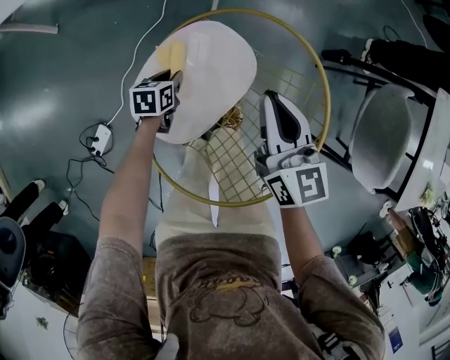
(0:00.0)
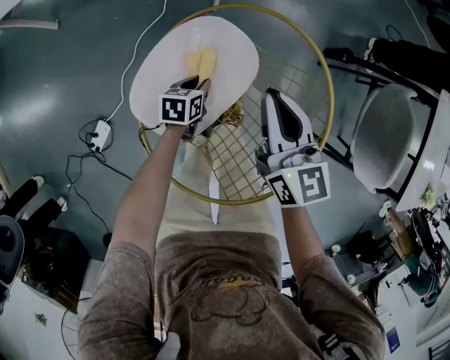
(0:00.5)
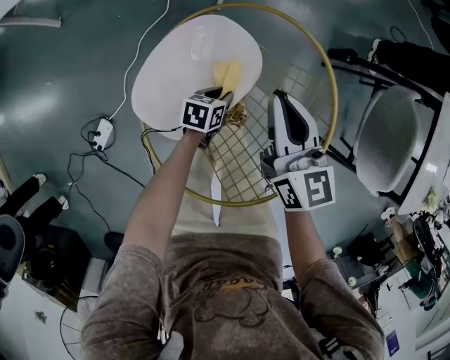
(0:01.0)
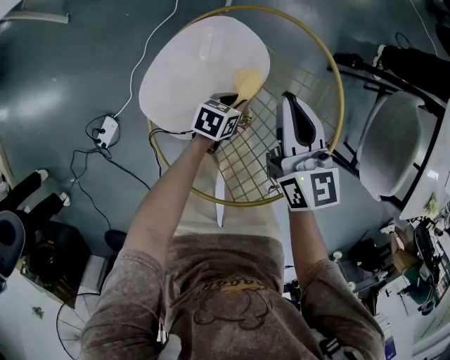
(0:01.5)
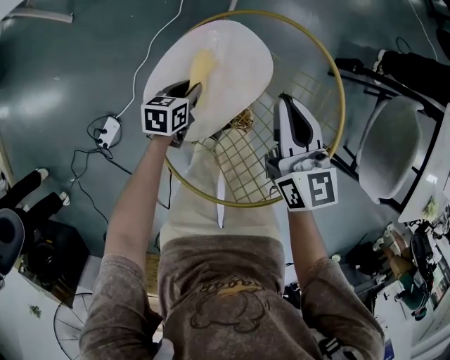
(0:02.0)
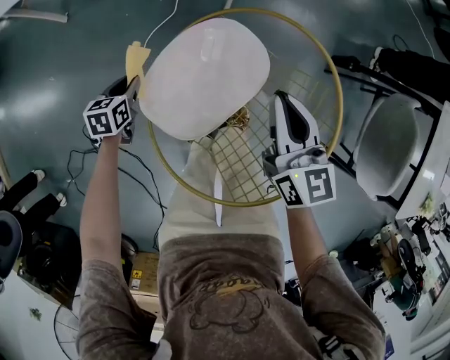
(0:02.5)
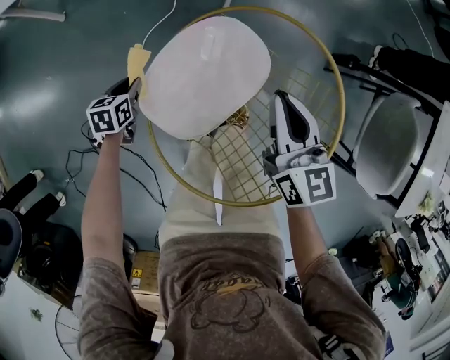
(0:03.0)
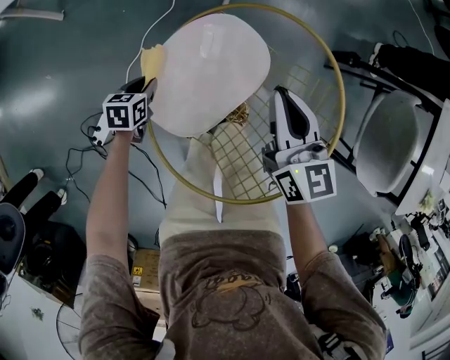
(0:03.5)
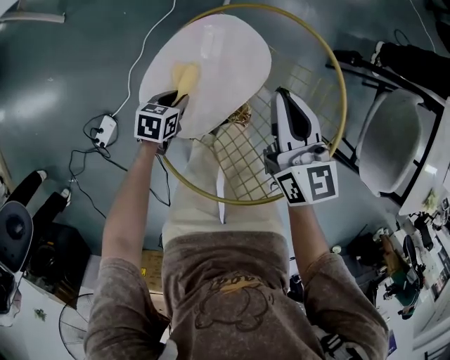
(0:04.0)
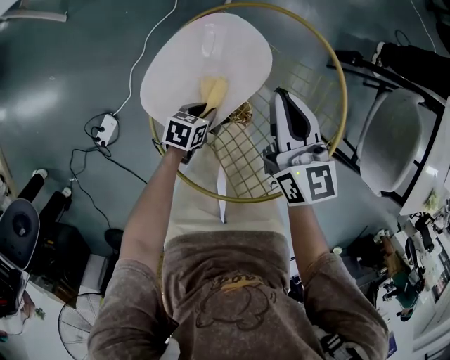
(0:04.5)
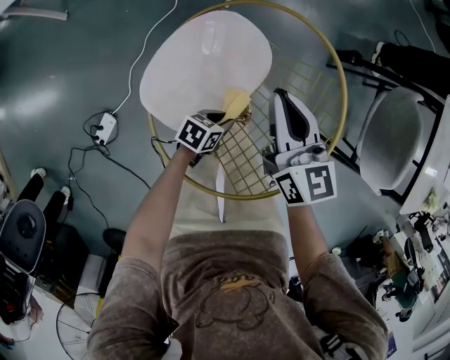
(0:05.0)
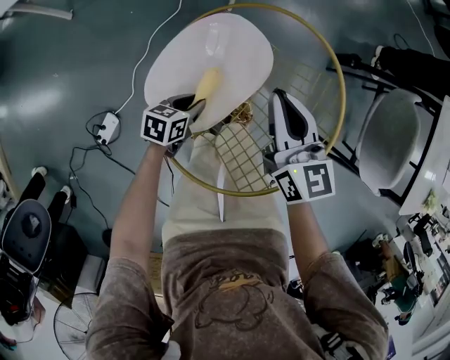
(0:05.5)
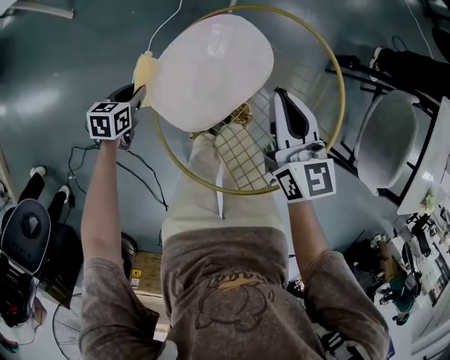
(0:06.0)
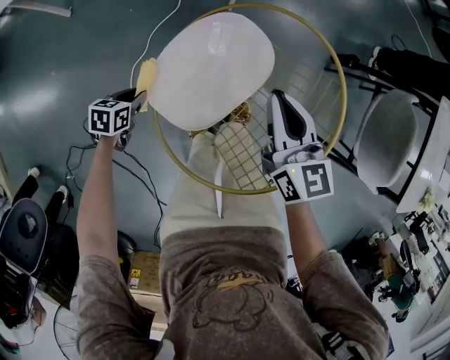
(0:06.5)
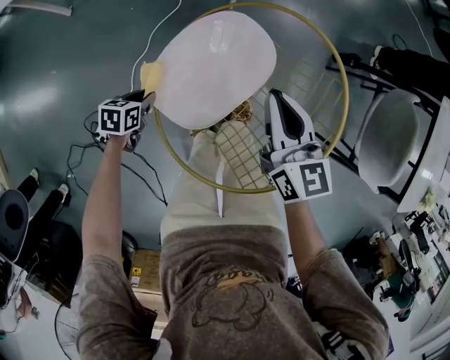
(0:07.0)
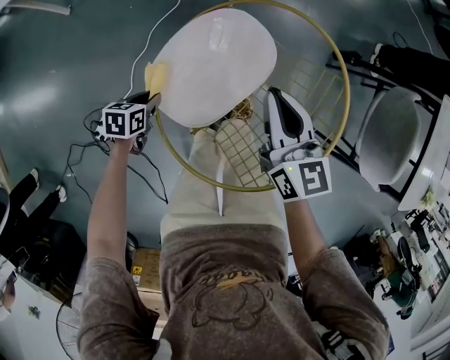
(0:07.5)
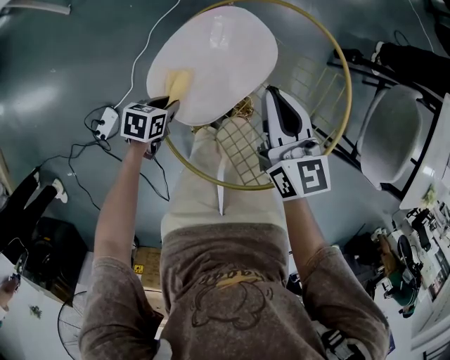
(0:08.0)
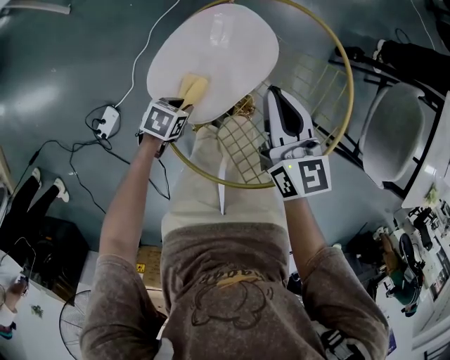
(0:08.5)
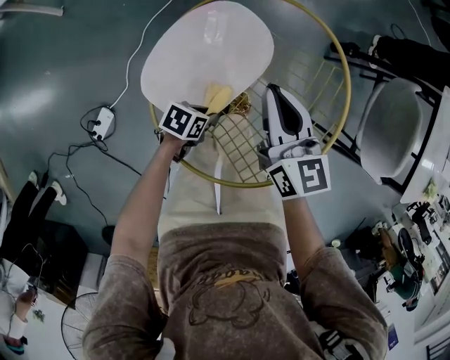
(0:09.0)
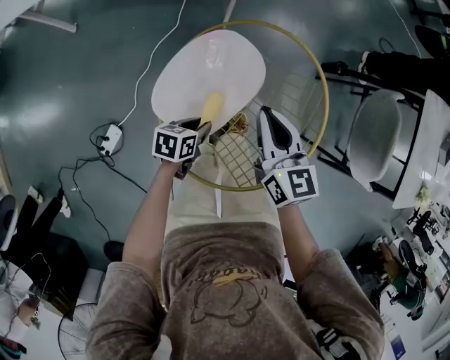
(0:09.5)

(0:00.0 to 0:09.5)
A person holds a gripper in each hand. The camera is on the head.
0:00.0 - 0:02.0: The left gripper moves roughly 20 cm to the right and comes back.
0:02.0 - 0:04.0: The left gripper is displaced backward by roughly 5 cm, and travels to the left and back again, roughly 15 cm each way.
0:04.0 - 0:05.5: The left gripper travels to the right and back again, about 15 cm each way.
0:05.5 - 0:07.5: The left gripper shifts roughly 15 cm to the left.
0:07.5 - 0:09.5: The left gripper goes some 15 cm to the right and upward.

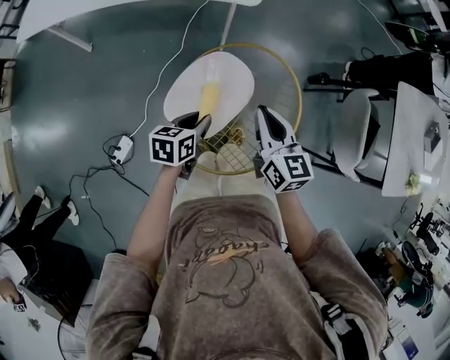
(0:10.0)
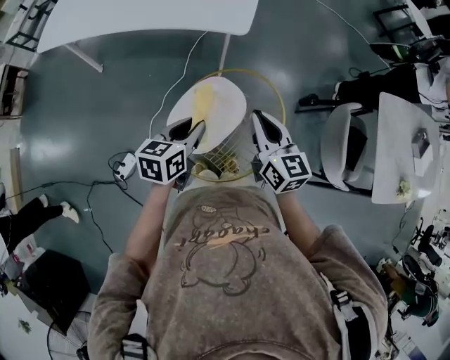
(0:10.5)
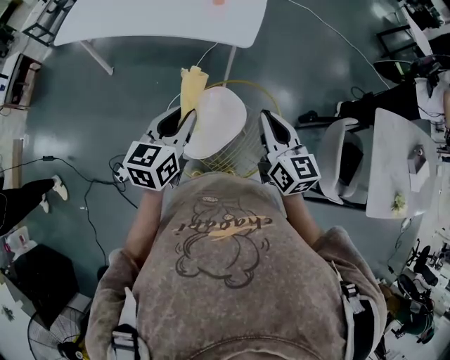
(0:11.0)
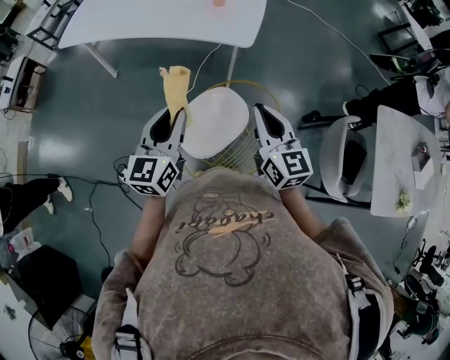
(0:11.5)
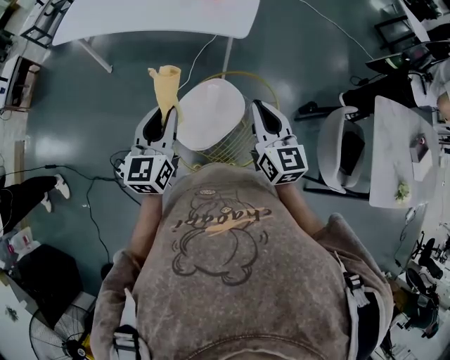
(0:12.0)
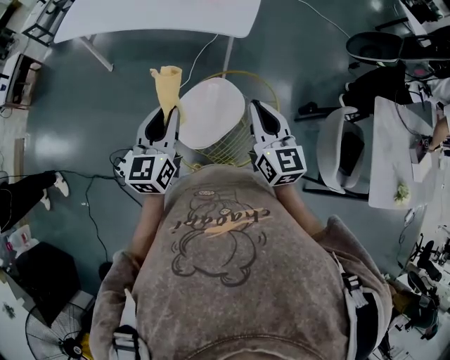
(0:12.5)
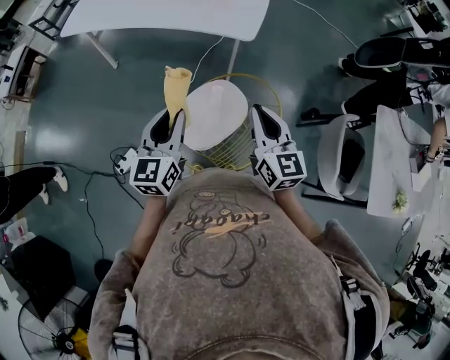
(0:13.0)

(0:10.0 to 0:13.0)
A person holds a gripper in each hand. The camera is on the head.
0:10.0 - 0:11.5: The left gripper heads upward, covering some 30 cm, and tilts its fingers about 30 degrees upward; the right gripper heads upward, covering roughly 15 cm.
0:11.5 - 0:13.0: The grippers make only small movements.

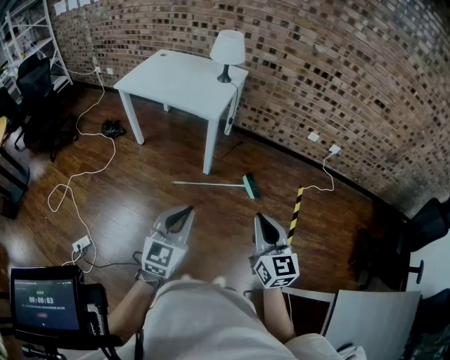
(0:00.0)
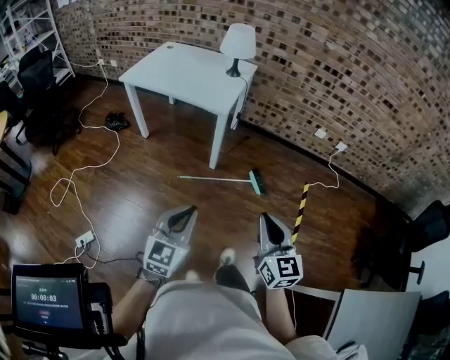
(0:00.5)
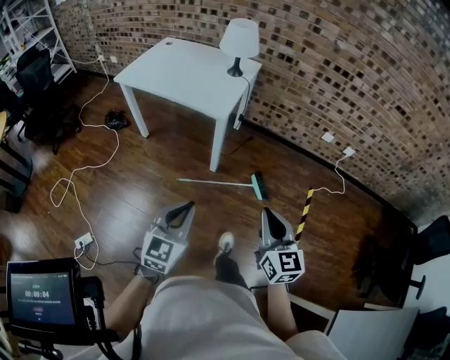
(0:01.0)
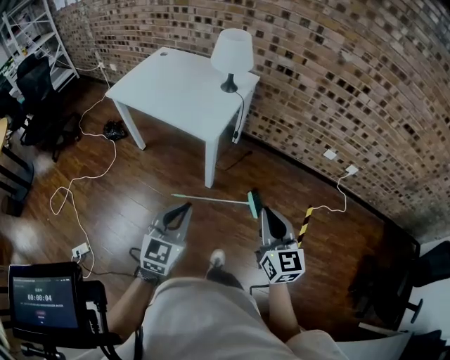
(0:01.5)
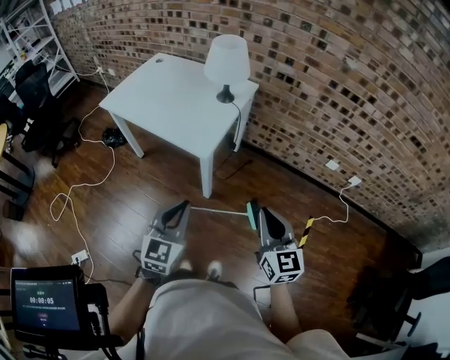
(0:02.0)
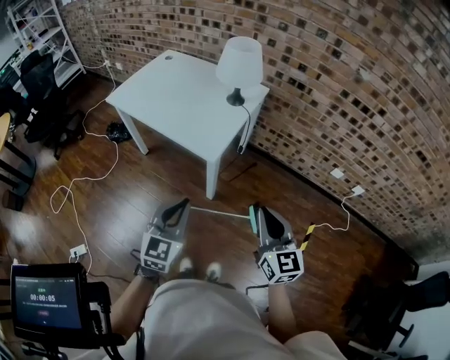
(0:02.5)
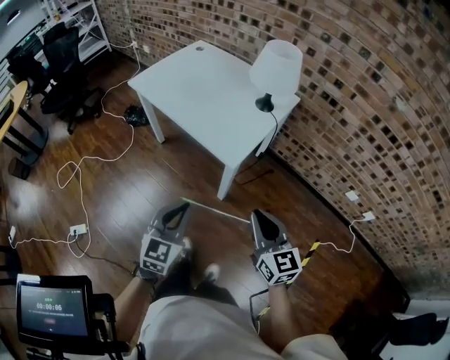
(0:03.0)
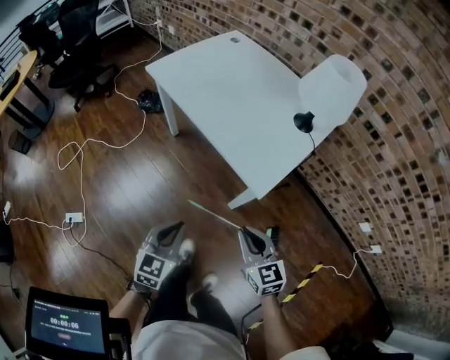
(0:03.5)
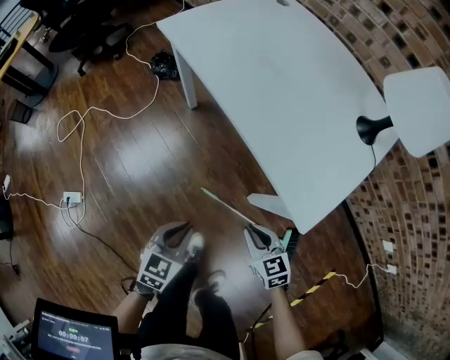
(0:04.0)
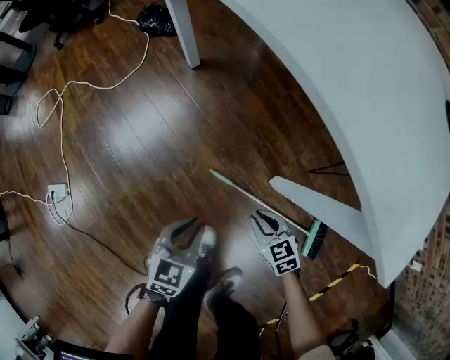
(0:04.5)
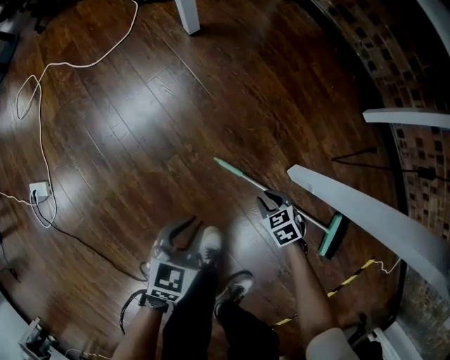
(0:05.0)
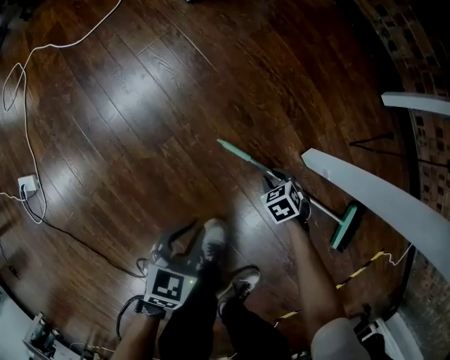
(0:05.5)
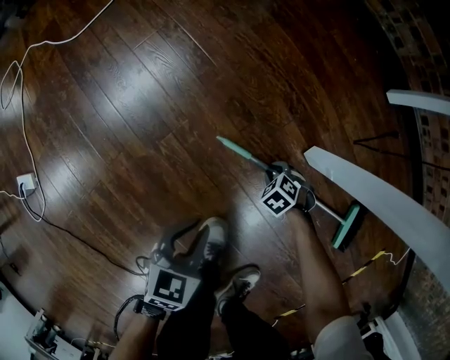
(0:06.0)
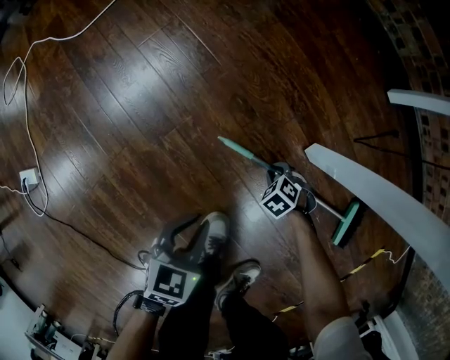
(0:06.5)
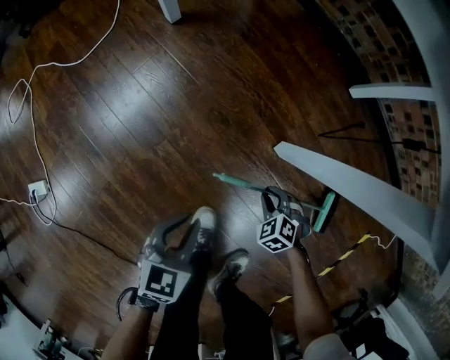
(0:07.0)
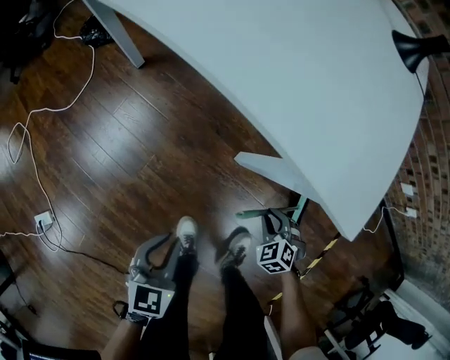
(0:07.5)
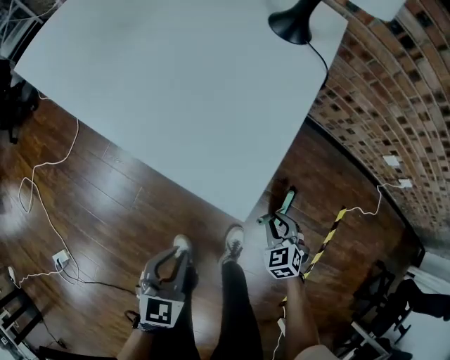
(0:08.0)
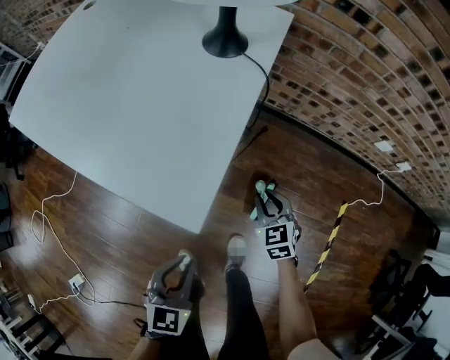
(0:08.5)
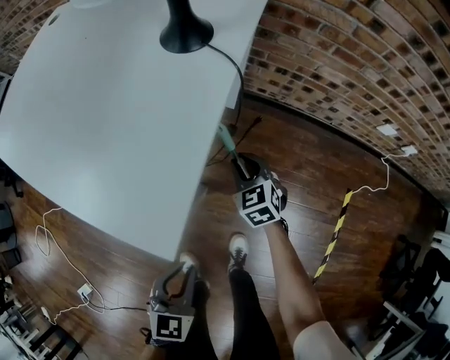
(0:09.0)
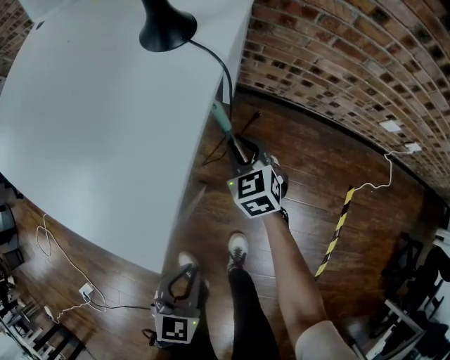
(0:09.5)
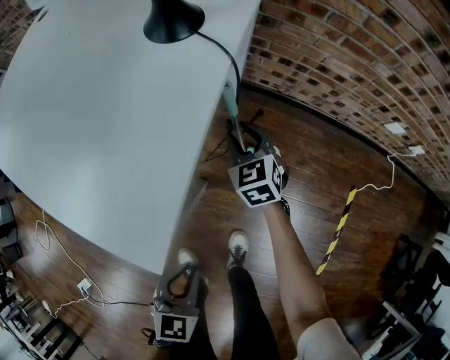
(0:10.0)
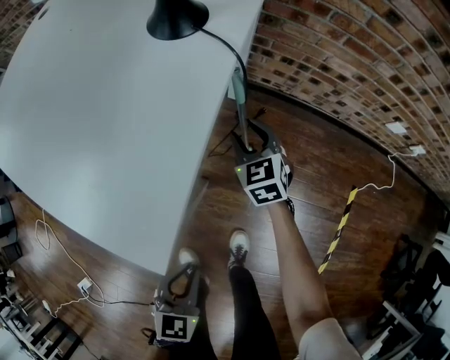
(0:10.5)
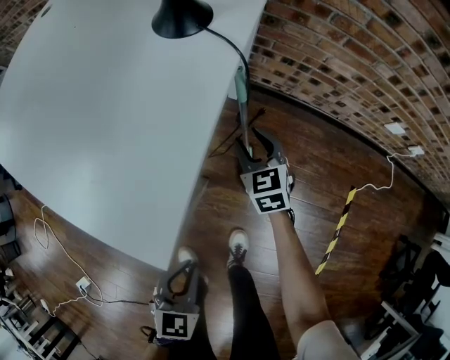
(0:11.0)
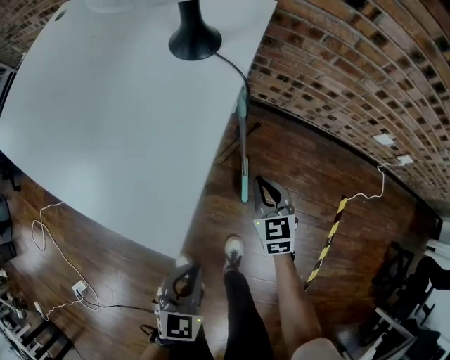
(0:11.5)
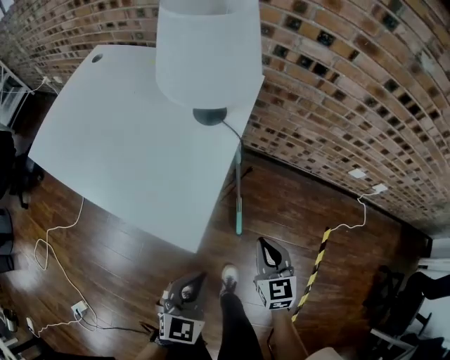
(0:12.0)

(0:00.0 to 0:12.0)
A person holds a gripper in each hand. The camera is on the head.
0:00.0 - 0:02.0: The two grippers go about 35 cm forward.
0:02.0 - 0:04.0: Both grippers move downward, roughly 35 cm. The left gripper turns by approximately 30 degrees, while the right gripper changes its angle by about 50 degrees.
0:04.0 - 0:06.0: The grippers both shift downward by roughly 50 cm. The right gripper angles its fingers downward, by roughly 50 degrees.
0:06.0 - 0:08.0: Both grippers move upward, approximately 40 cm. The left gripper swivels approximately 30 degrees, while the right gripper points its fingers some 30 degrees further upward.
0:08.0 - 0:10.0: The right gripper heads forward, covering approximately 30 cm, and changes its angle by about 20 degrees; the left gripper goes about 15 cm to the right and forward.
0:10.0 - 0:12.0: The left gripper shifts about 15 cm upward. The right gripper shifts approximately 30 cm backward and upward, and closes up.

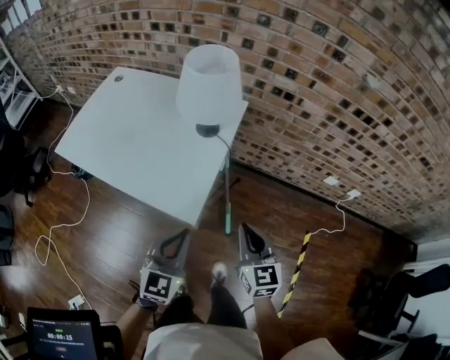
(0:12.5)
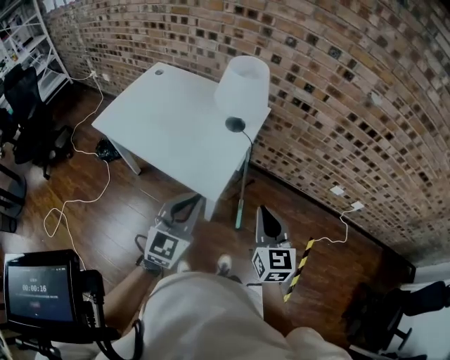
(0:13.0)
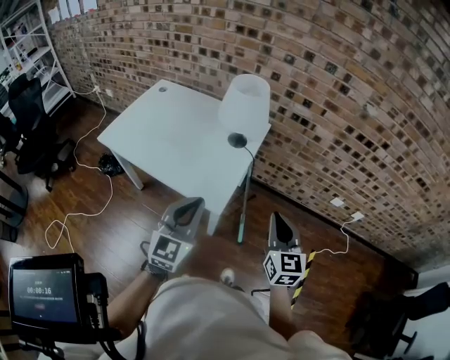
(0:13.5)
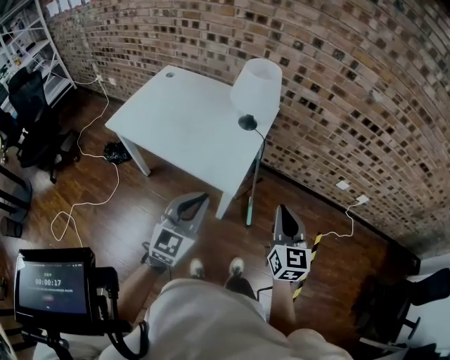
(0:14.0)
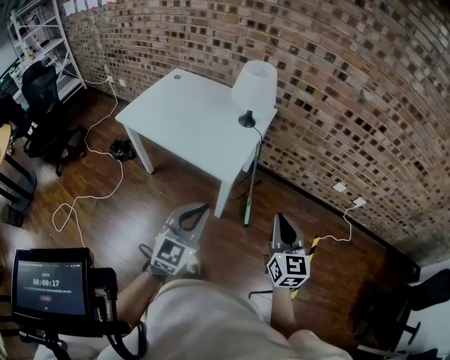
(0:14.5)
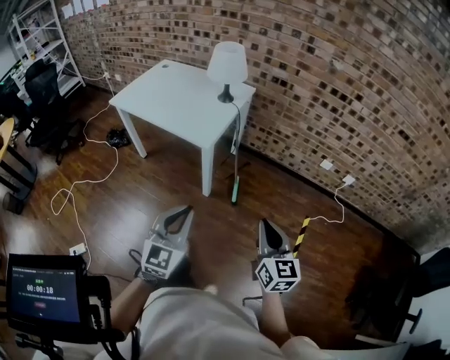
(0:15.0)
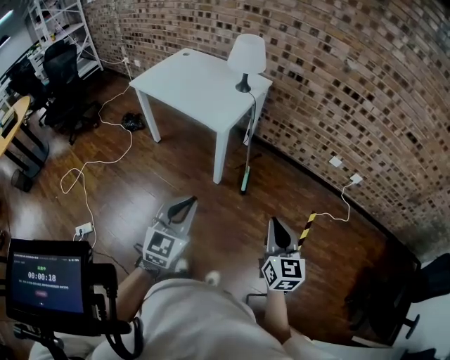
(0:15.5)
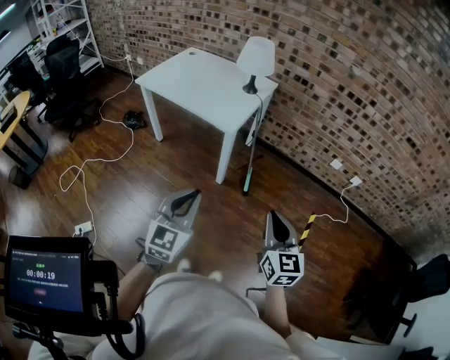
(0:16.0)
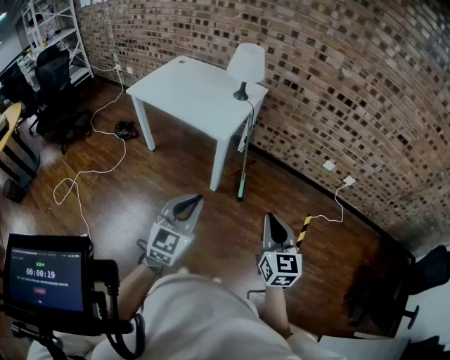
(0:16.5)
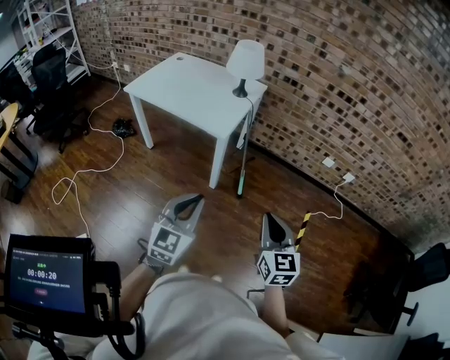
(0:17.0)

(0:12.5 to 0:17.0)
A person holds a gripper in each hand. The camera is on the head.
0:12.5 - 0:14.5: The two grippers go some 20 cm backward and upward.
0:14.5 - 0:17.0: The two grippers go some 25 cm backward.
